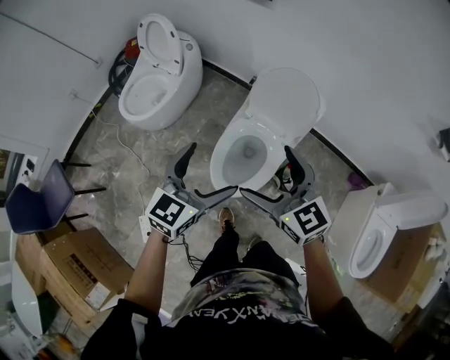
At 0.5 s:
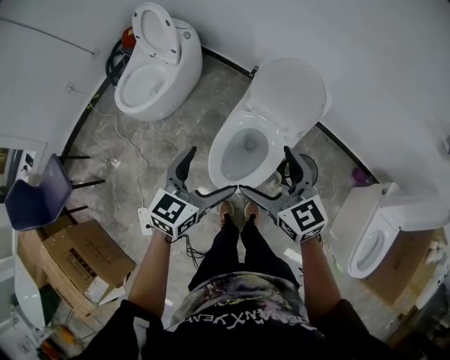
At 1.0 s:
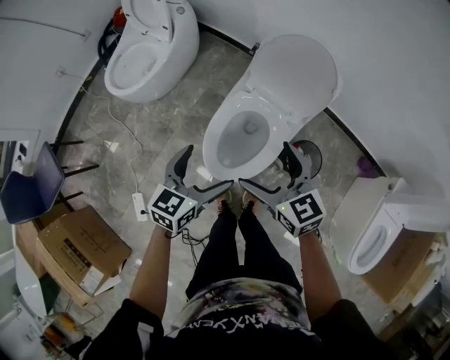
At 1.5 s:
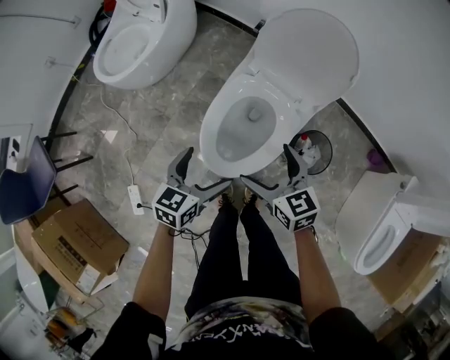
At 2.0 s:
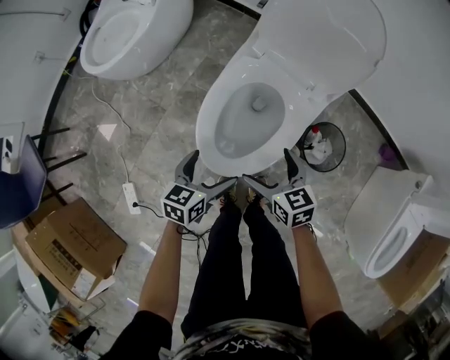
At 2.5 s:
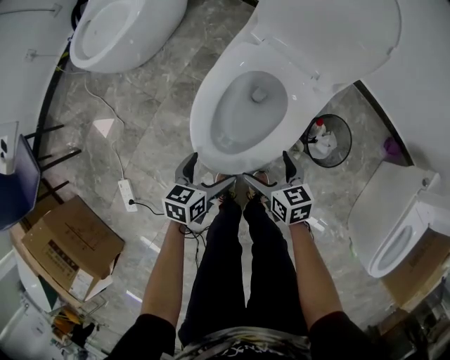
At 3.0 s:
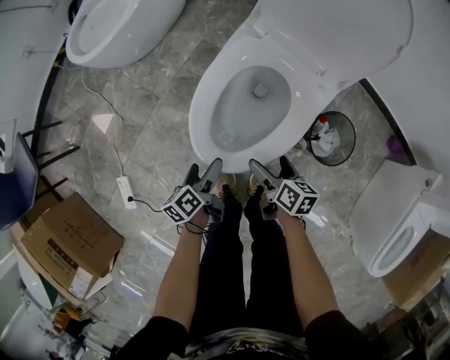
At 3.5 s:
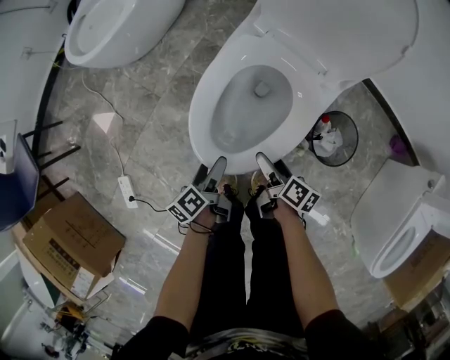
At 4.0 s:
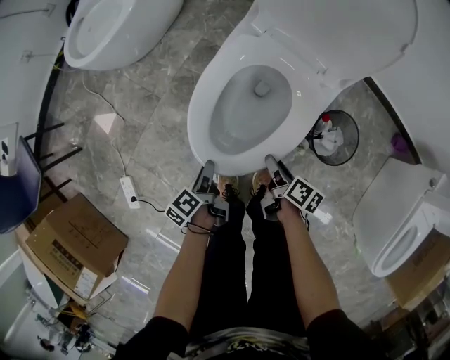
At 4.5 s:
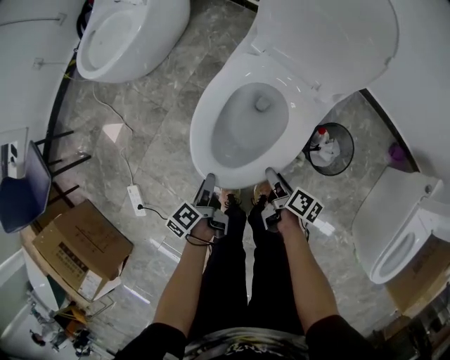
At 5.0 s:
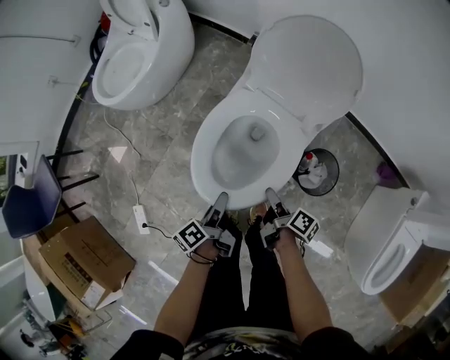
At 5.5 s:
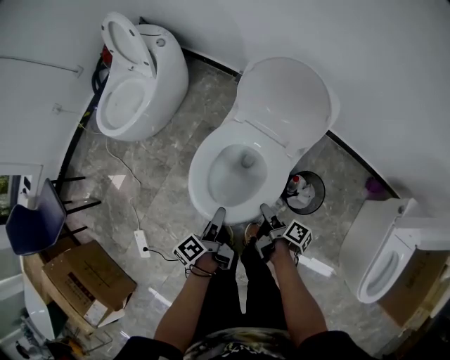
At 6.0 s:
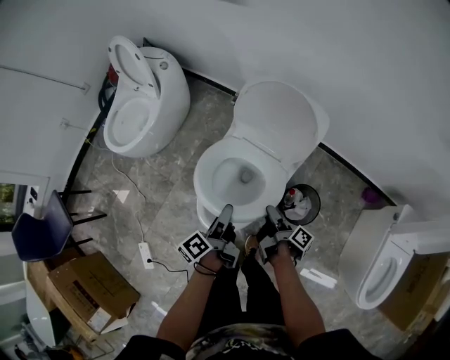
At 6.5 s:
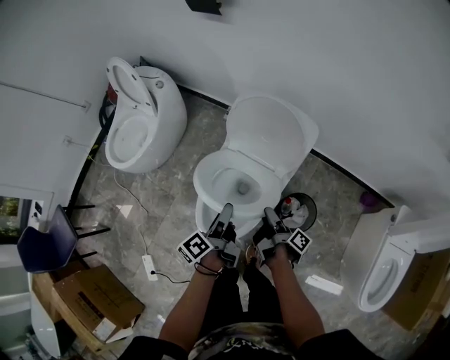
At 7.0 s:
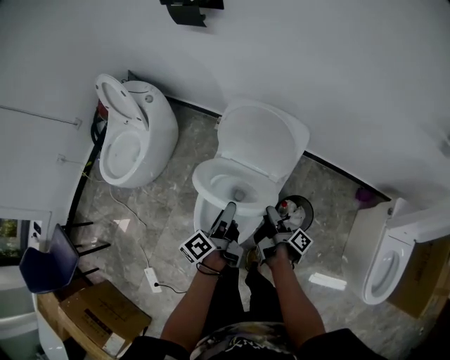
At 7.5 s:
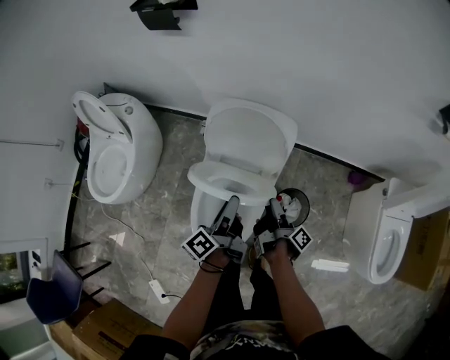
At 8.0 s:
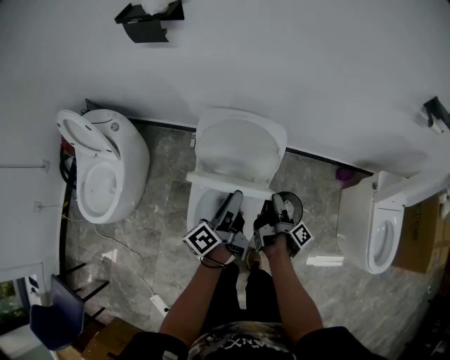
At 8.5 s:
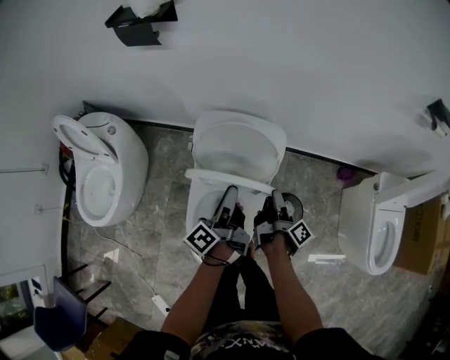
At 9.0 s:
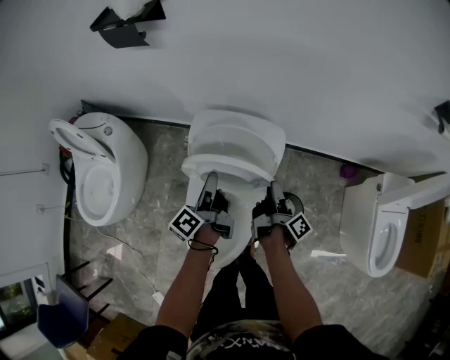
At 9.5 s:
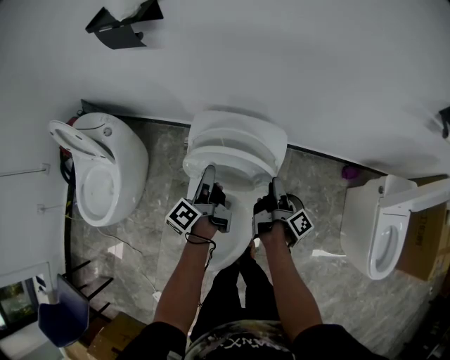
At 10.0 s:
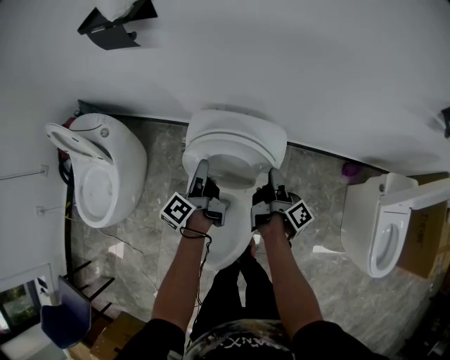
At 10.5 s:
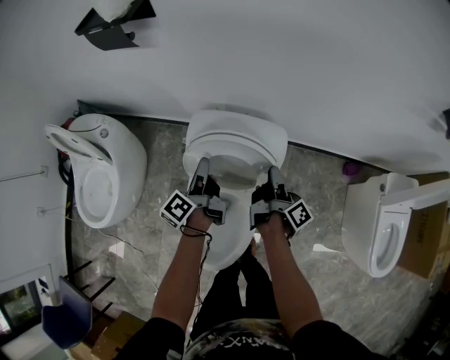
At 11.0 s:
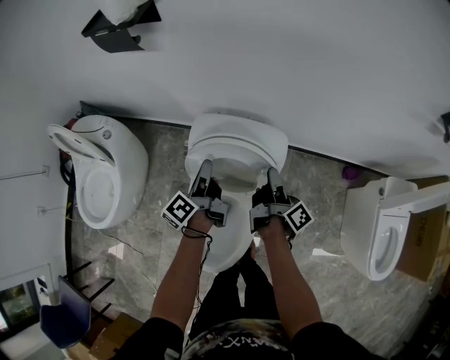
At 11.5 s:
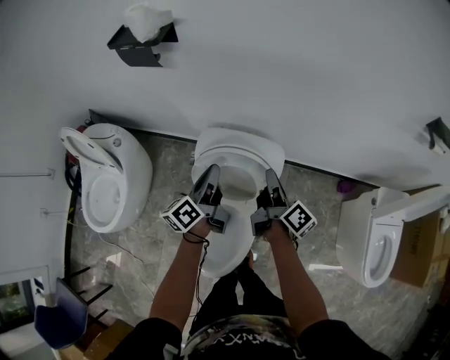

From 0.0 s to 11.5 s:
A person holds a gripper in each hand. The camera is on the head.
From 0.0 s to 2.0 s: The two grippers go some 40 cm downward. The left gripper rotates some 30 degrees. Meanwhile the right gripper turns by roughly 30 degrees.
From 2.0 s to 4.0 s: The two grippers go some 15 cm downward. The left gripper twists about 60 degrees counterclockwise, seen from behind, and closes up. The right gripper rotates around the line of its fingers by roughly 60 degrees, clockwise from behind, and closes its fingers.
From 4.0 s to 6.0 s: The right gripper heads upward, covering approximately 25 cm, and turns by approximately 40 degrees; the left gripper shifts roughly 35 cm upward and to the right, and turns by roughly 30 degrees.
From 6.0 s to 7.5 s: The left gripper heads forward, upward and to the right, covering about 15 cm. The right gripper moves forward and upward, approximately 10 cm, and rotates roughly 30 degrees.
From 7.5 s to 9.5 s: Both grippers travel together forward, about 15 cm.
From 9.5 s to 11.5 s: The left gripper is displaced upward by some 10 cm. Meanwhile the right gripper is displaced upward by some 15 cm, and turns by roughly 30 degrees.

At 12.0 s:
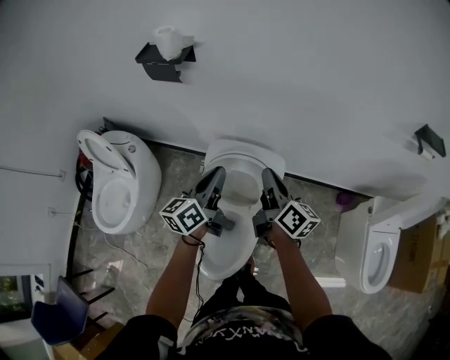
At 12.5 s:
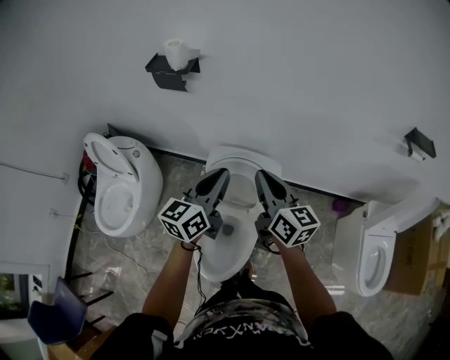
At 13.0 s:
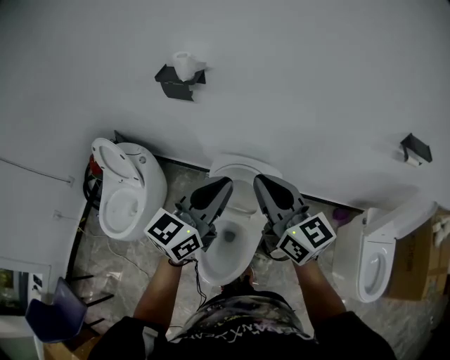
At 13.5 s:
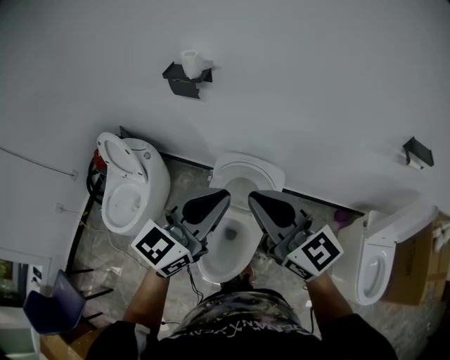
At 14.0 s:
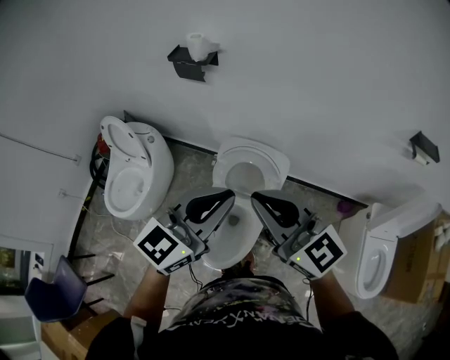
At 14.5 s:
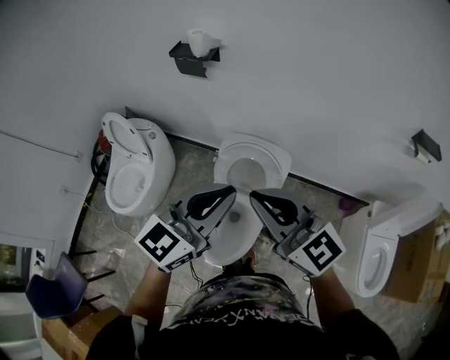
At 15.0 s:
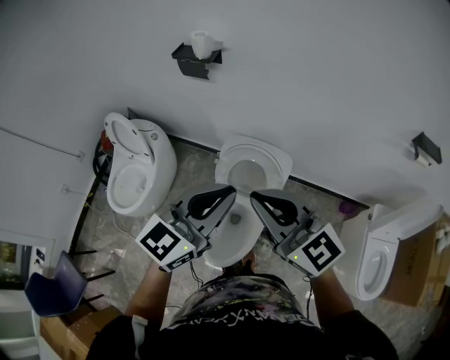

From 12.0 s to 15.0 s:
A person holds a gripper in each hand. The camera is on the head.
From 12.0 s to 13.5 s: Both grippers travel together upward and backward, roughly 30 cm. The right gripper rotates around the line of its fingers by roughly 50 degrees, counterclockwise from behind. The left gripper swivels about 40 degrees.
From 13.5 s to 15.0 s: The grippers move only a little.

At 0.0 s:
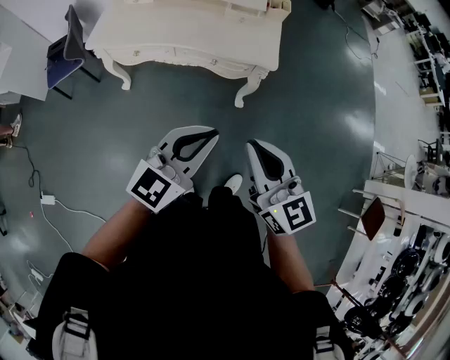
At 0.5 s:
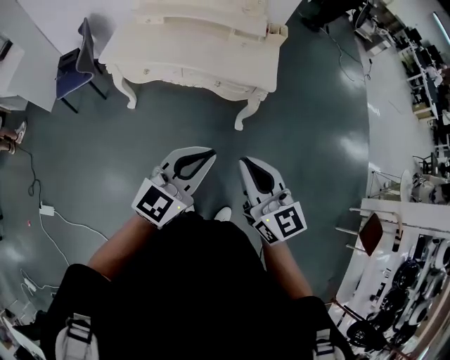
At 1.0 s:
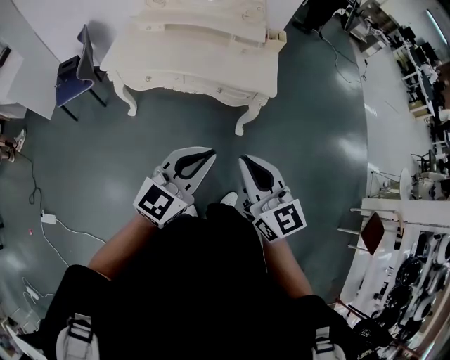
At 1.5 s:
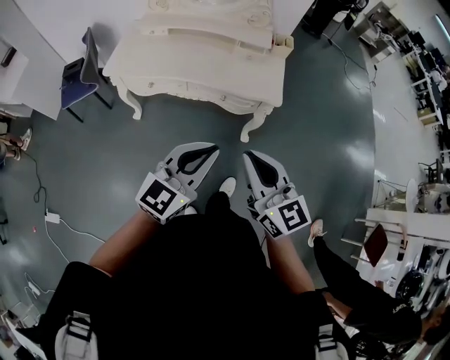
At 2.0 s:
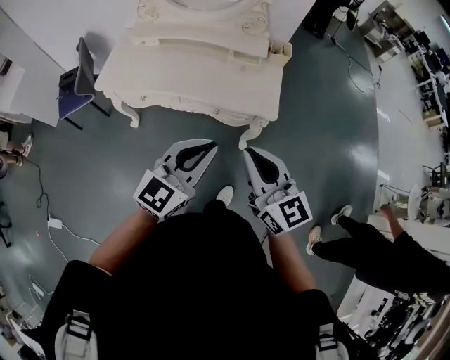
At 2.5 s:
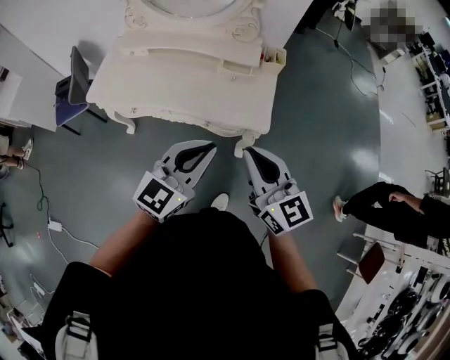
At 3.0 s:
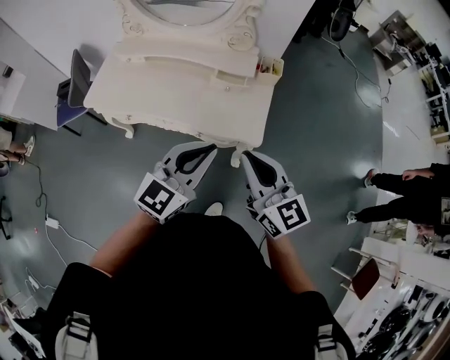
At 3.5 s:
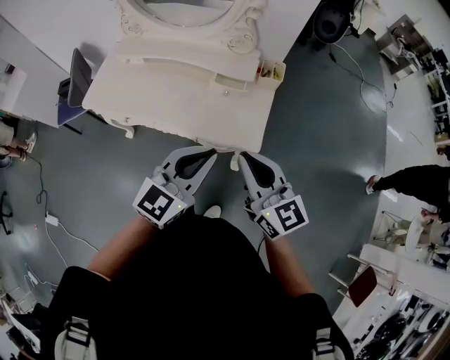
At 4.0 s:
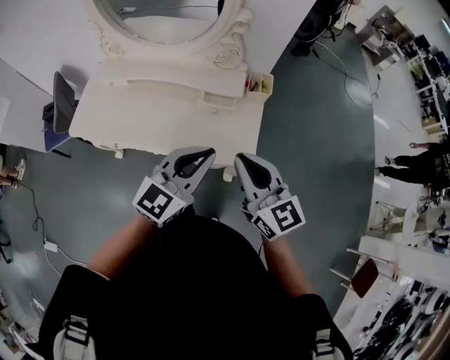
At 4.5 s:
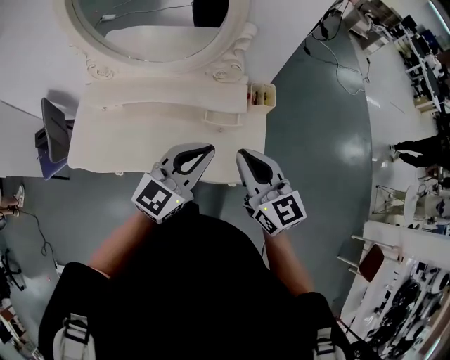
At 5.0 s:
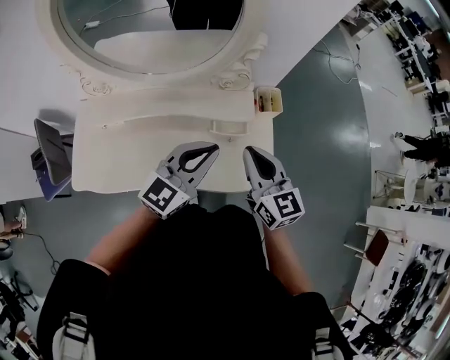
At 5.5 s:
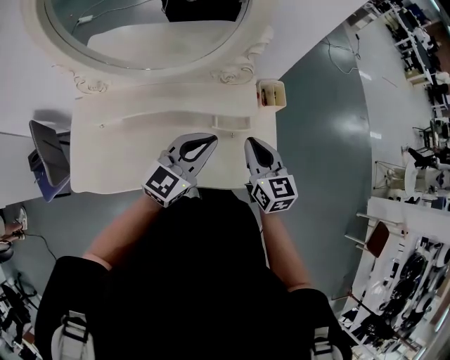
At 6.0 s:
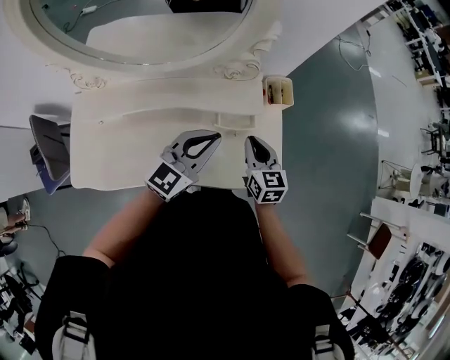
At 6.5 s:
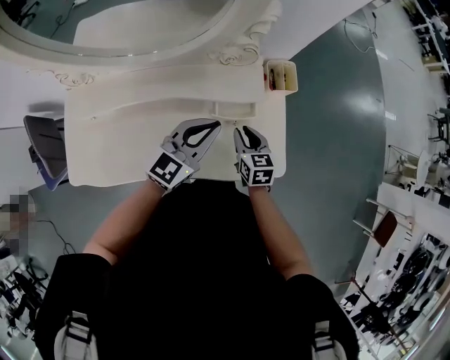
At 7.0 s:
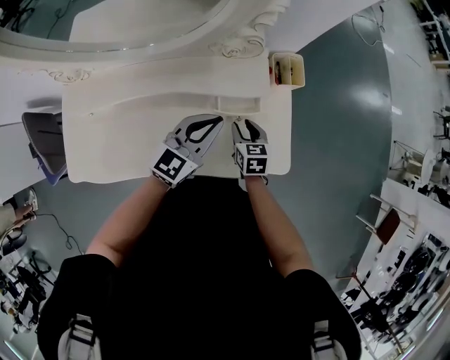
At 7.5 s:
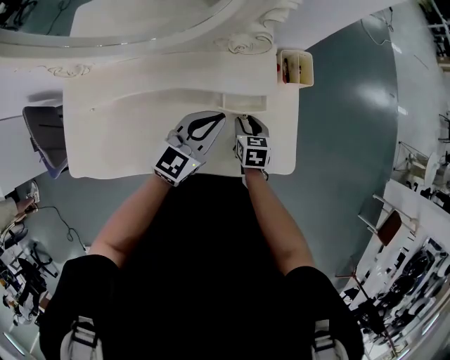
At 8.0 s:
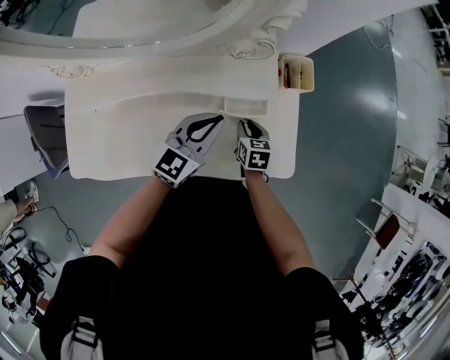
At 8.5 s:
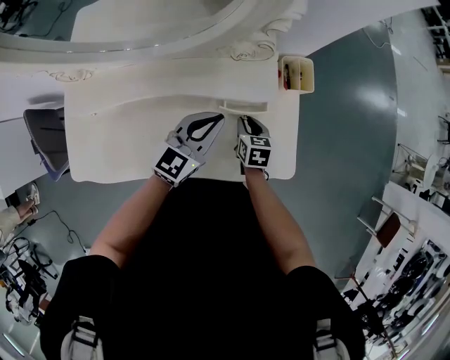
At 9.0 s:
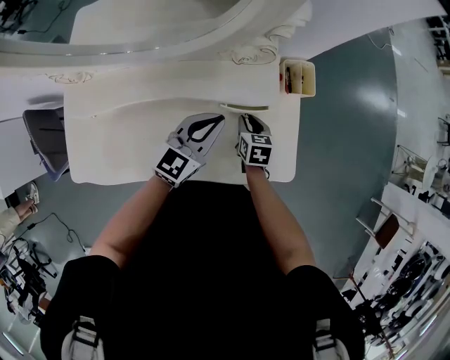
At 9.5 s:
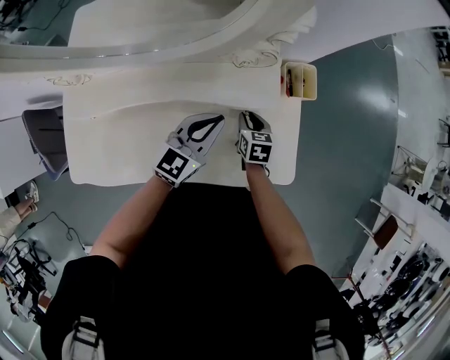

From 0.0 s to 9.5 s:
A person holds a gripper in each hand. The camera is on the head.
From 0.0 s to 2.0 s: Both grippers move forward, roughly 10 cm.
From 2.0 s to 4.0 s: The right gripper travels forward by about 25 cm; the left gripper heads forward and to the right, covering approximately 25 cm.
From 4.0 s to 5.5 s: The left gripper goes some 25 cm forward and to the left. The right gripper is displaced forward, downward and to the left by some 25 cm, and swivels approximately 30 degrees.
From 5.5 s to 7.5 s: The right gripper is displaced downward by some 25 cm, changes its angle by some 30 degrees, and opens up. The left gripper shifts about 15 cm downward and forward.
From 7.5 s to 9.5 s: The right gripper goes approximately 5 cm forward.

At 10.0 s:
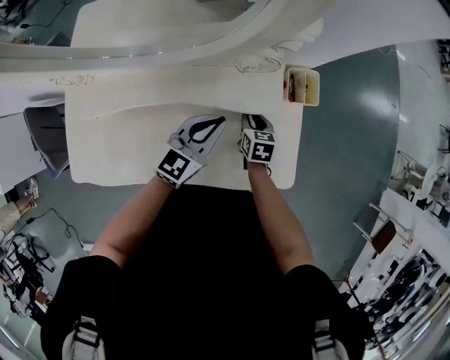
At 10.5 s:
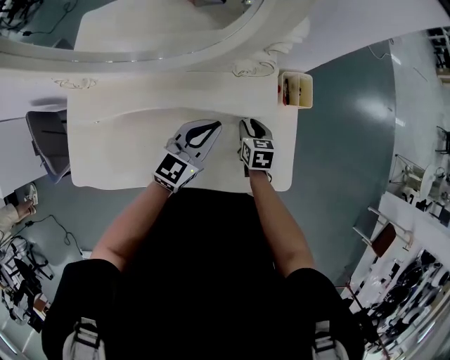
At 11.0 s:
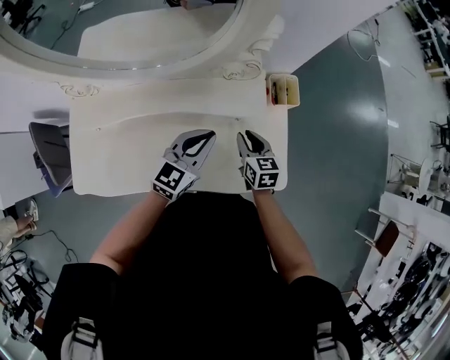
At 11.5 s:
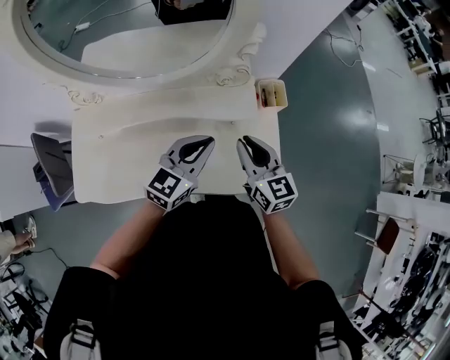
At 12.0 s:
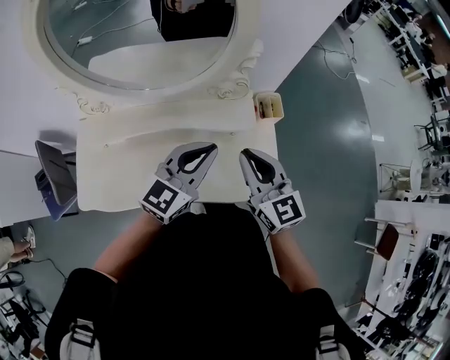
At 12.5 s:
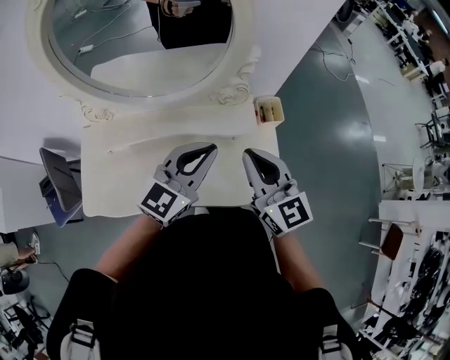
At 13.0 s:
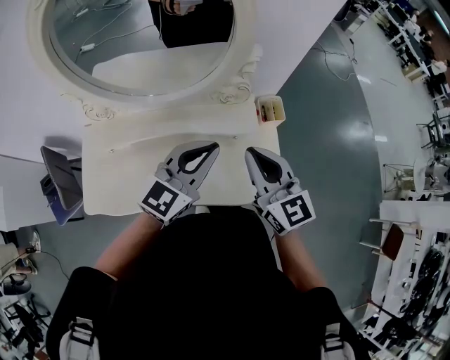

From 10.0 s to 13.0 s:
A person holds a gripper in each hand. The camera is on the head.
From 10.0 s to 11.5 s: The right gripper is displaced upward and backward by some 30 cm, and tips its fingers upward by roughly 40 degrees; the left gripper goes approximately 15 cm upward and backward.
From 11.5 s to 13.0 s: Both grippers move upward, about 10 cm.
